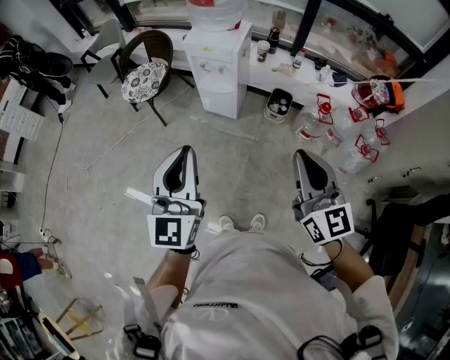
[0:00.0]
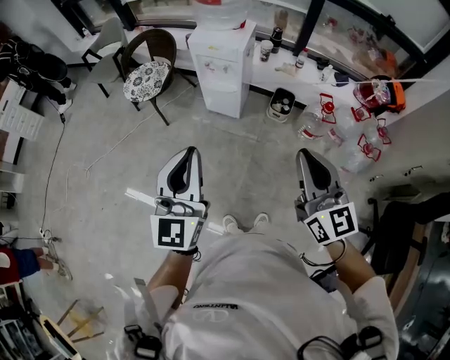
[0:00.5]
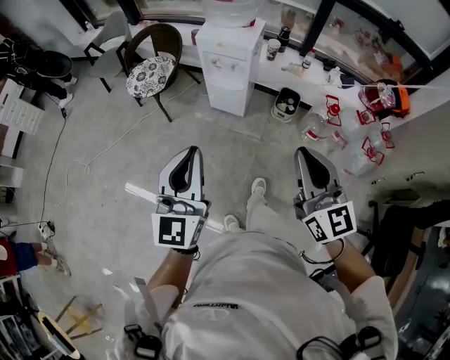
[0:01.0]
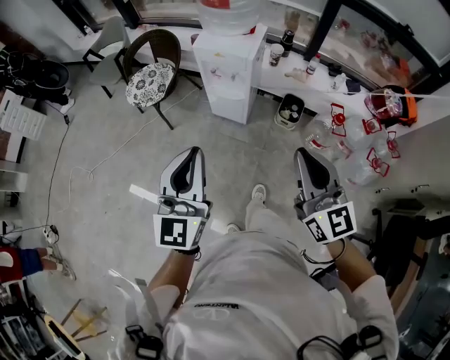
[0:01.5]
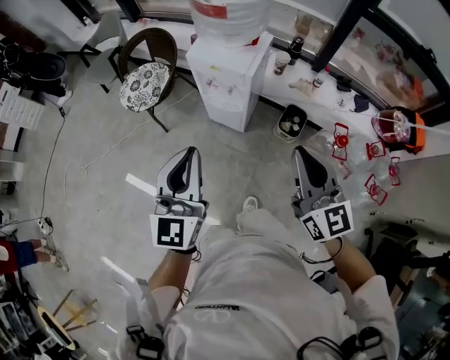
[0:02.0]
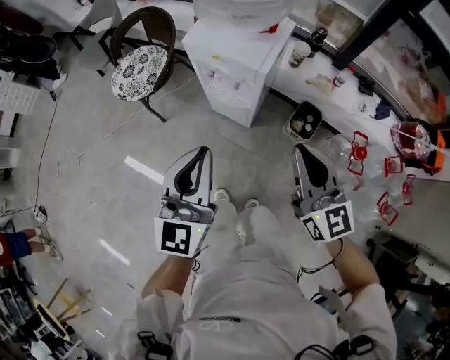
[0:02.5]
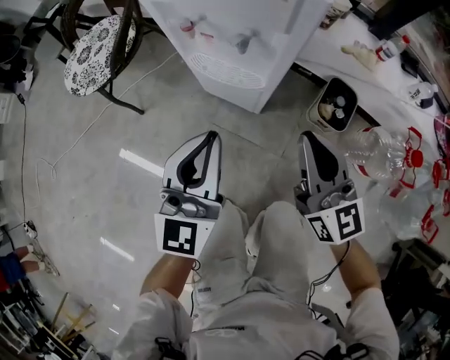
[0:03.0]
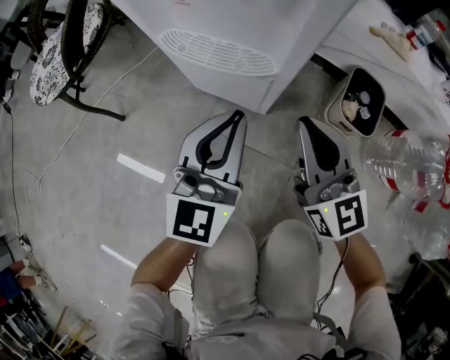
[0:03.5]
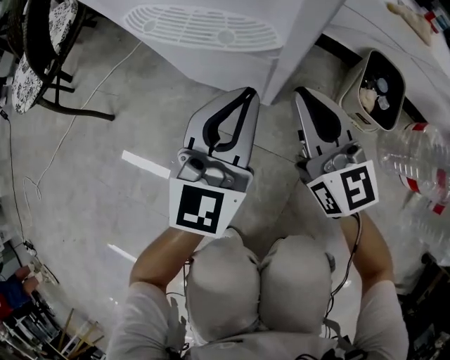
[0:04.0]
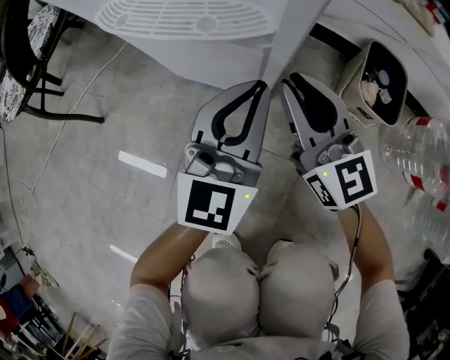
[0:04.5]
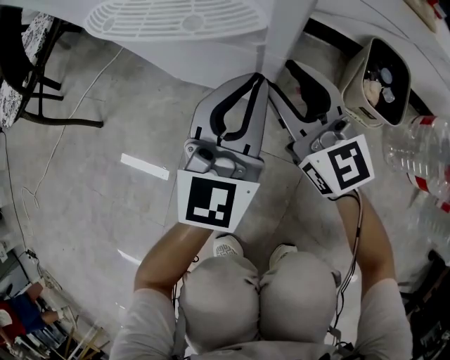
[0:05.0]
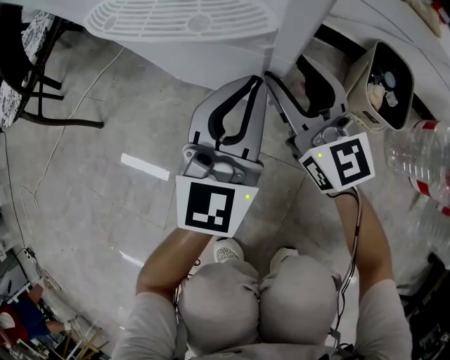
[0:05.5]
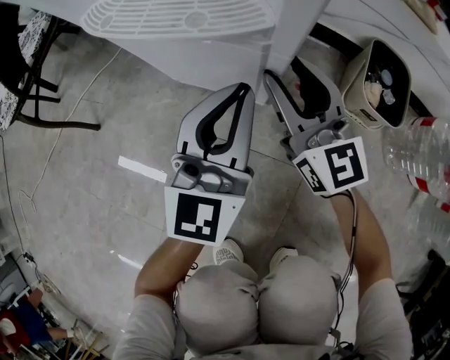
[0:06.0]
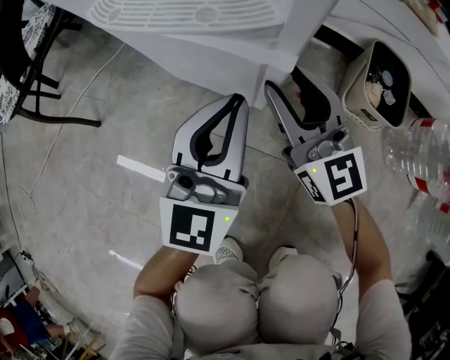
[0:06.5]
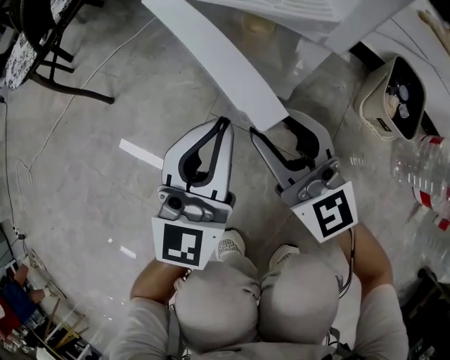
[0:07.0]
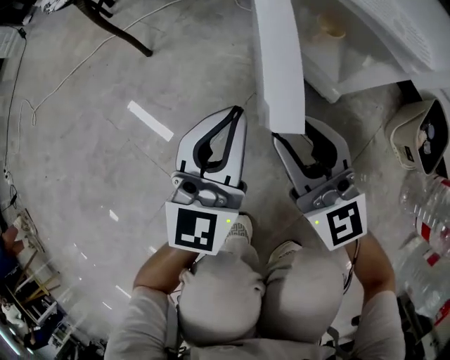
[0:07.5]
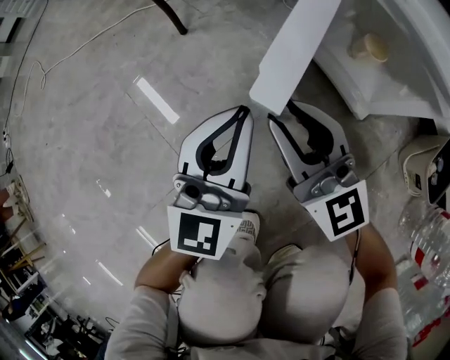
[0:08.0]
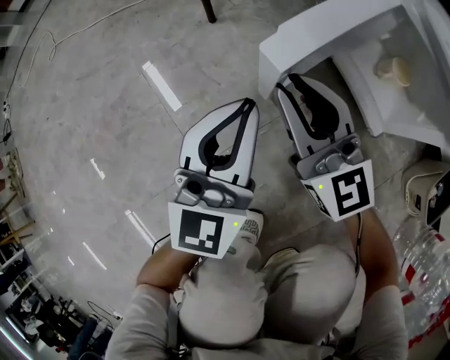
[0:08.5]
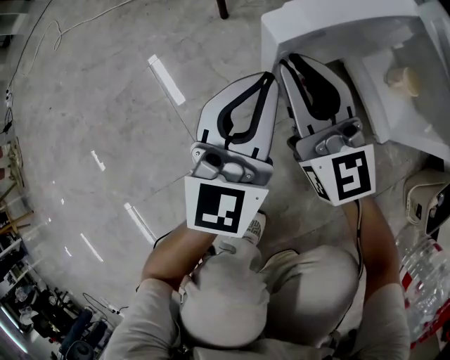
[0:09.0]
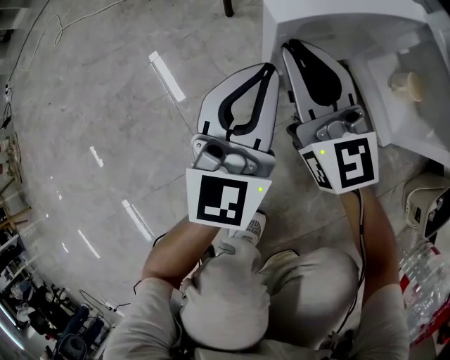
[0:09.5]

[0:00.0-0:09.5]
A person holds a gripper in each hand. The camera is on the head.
0:00.0 to 0:02.0: The grippers both shift forward by approximately 25 cm.
0:02.0 to 0:04.0: The two grippers go approximately 80 cm downward and forward.
0:04.0 to 0:05.5: The right gripper moves downward, approximately 5 cm, and opens its fingers; the left gripper shifts by roughly 5 cm.
0:05.5 to 0:07.5: Both grippers travel together to the left and backward, roughly 25 cm. The left gripper rotates about 20 degrees. The right gripper rotates approximately 20 degrees.
0:07.5 to 0:09.5: The two grippers go approximately 20 cm to the left and forward. The right gripper closes up.

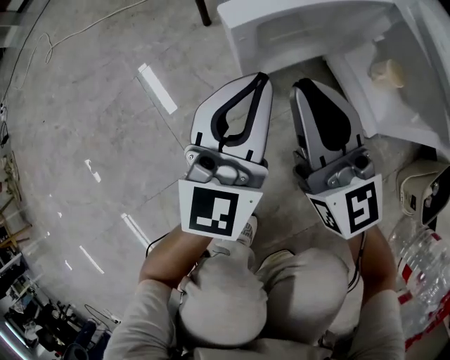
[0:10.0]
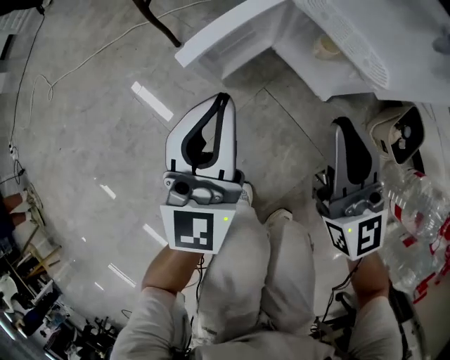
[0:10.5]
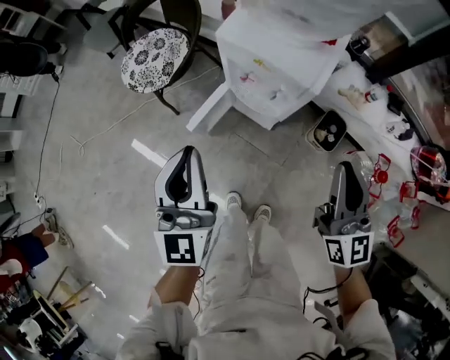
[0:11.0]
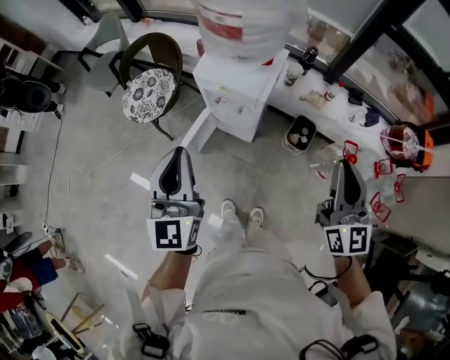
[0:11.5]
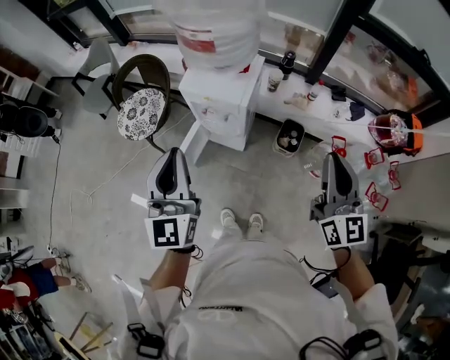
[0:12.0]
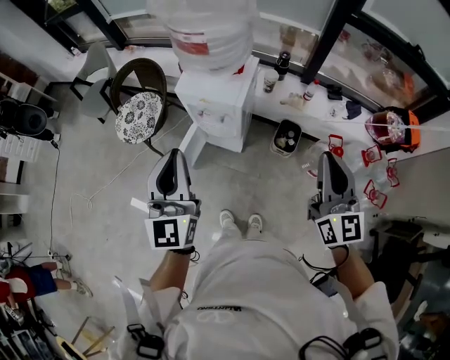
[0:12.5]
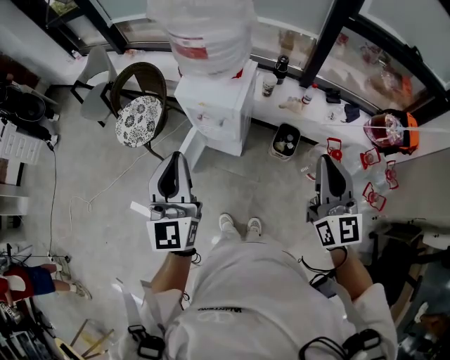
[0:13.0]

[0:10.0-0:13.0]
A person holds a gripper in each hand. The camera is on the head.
0:10.0 to 0:11.5: Both grippers travel together upward, roughly 70 cm. The right gripper changes its angle by approximately 50 degrees.
0:11.5 to 0:13.0: The left gripper shifts roughly 5 cm to the right. Meanwhile the right gripper ends up approximately 5 cm from where it was.

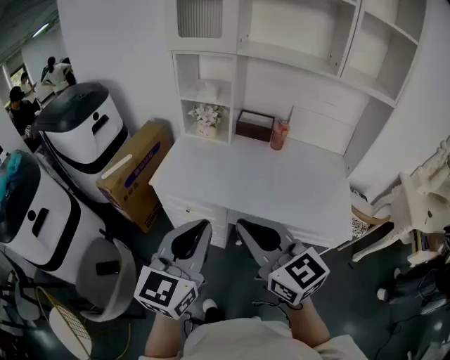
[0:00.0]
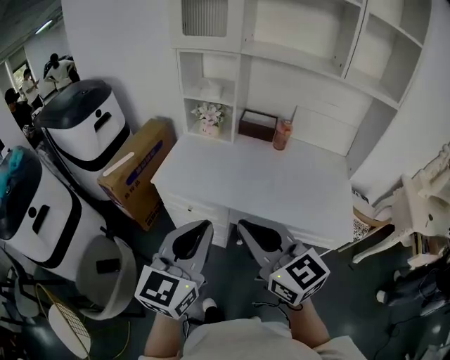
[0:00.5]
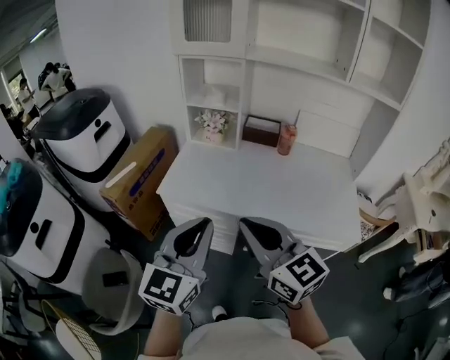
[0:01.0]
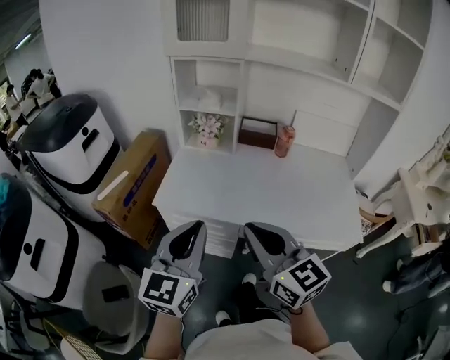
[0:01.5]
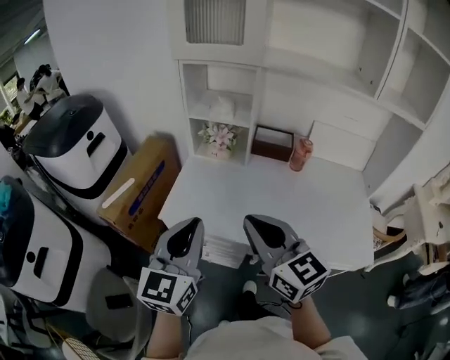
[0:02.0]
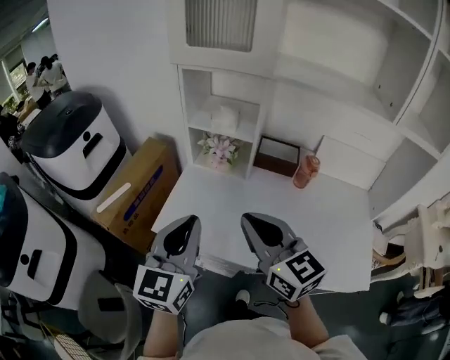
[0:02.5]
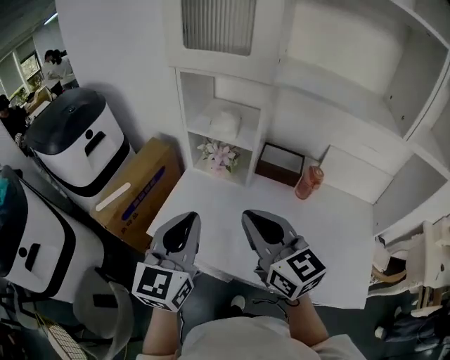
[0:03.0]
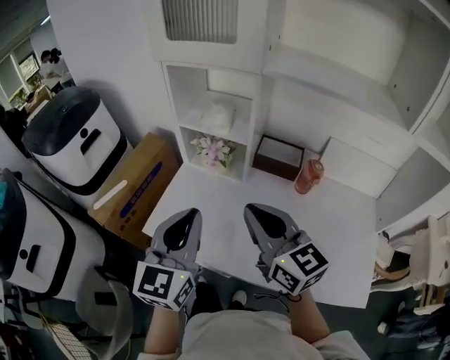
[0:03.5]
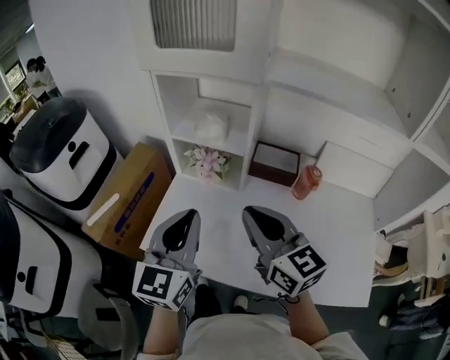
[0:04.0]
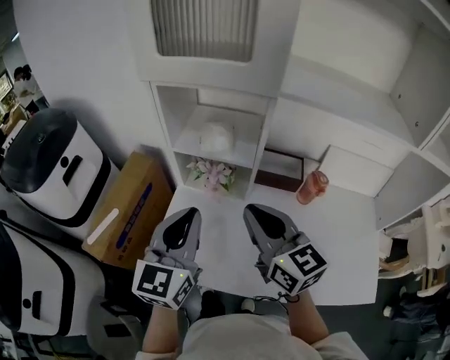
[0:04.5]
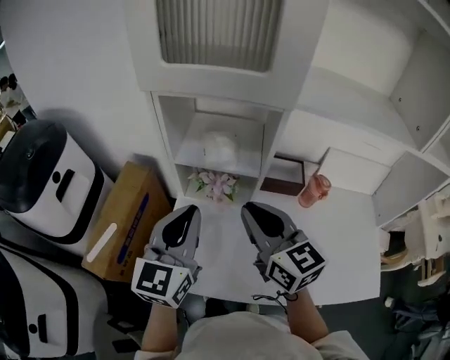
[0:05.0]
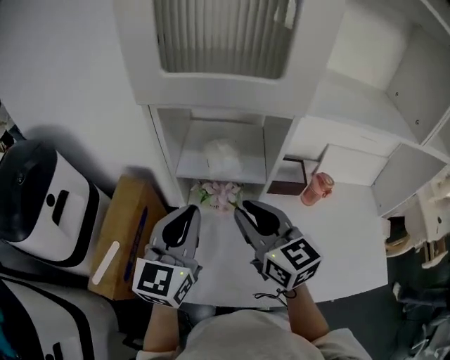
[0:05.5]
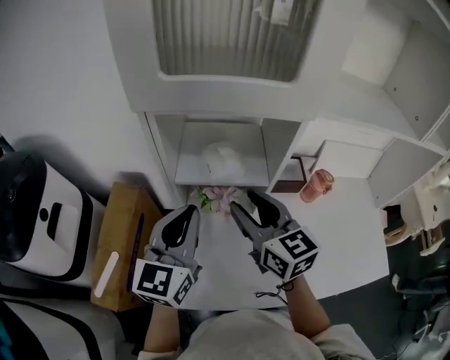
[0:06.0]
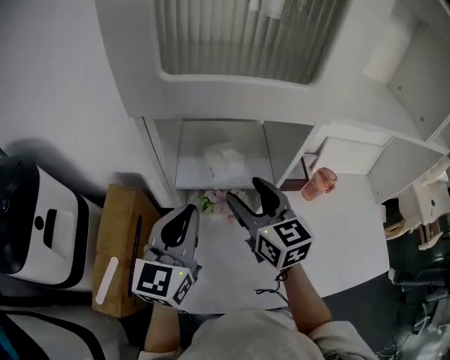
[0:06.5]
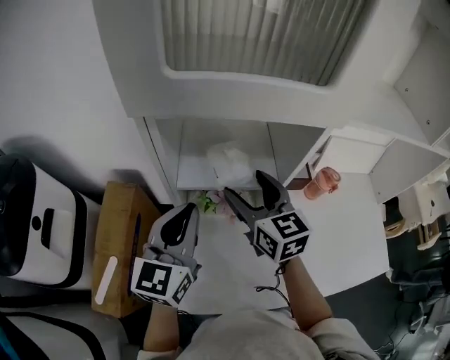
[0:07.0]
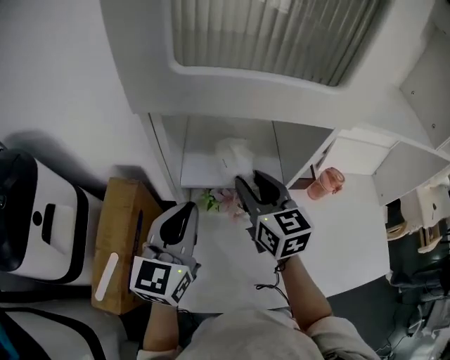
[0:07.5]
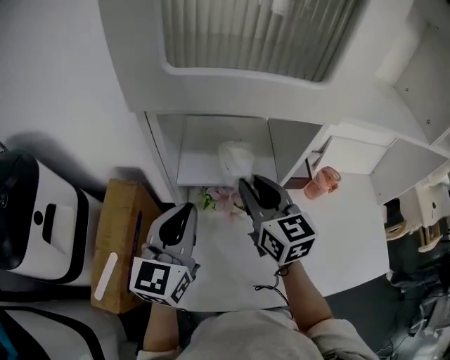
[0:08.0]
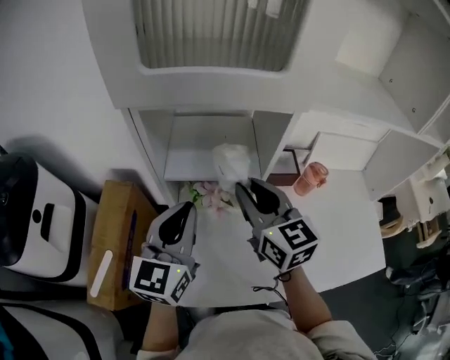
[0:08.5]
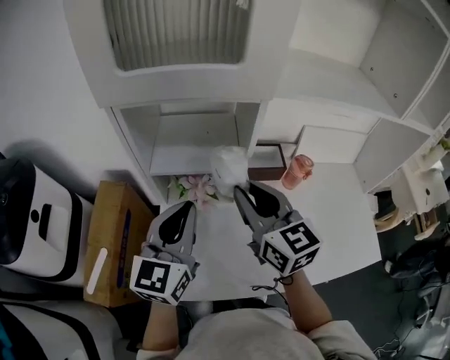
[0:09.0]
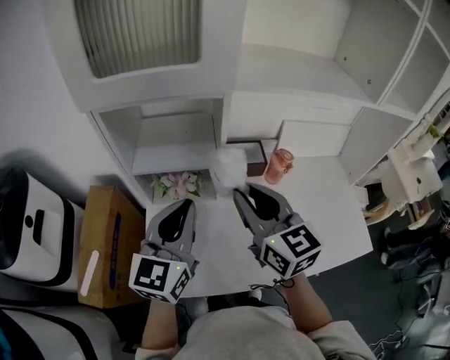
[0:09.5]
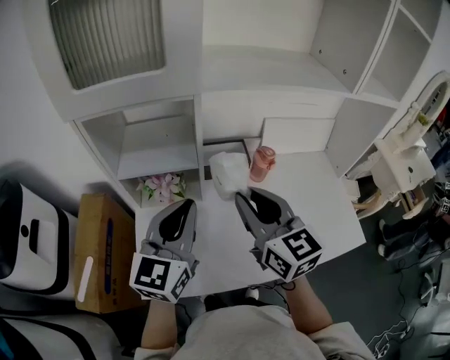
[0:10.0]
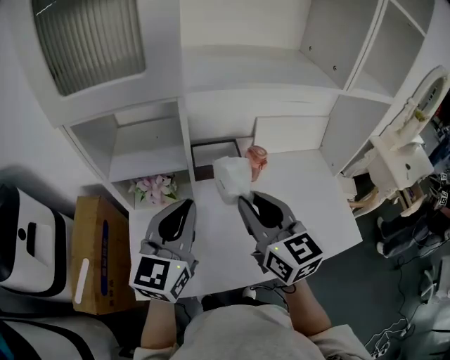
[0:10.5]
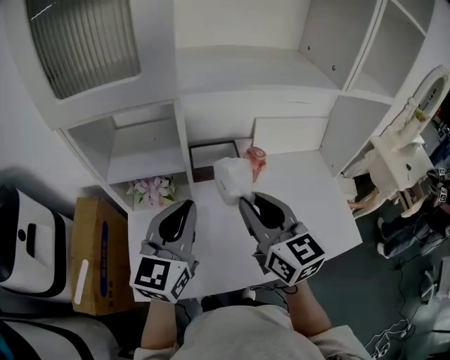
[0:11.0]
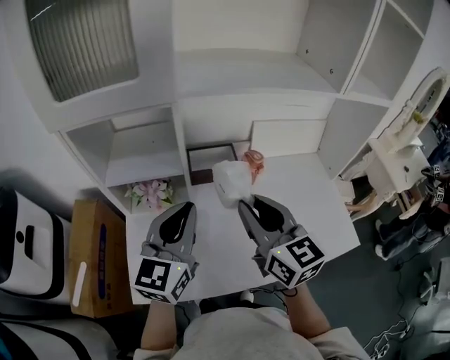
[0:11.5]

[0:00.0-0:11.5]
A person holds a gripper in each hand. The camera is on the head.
0:00.0 to 0:02.0: The right gripper goes about 20 cm forward; the left gripper moves forward and to the left, some 20 cm.
0:02.0 to 0:04.0: The two grippers go some 20 cm forward and to the right.
0:04.0 to 0:06.0: Both grippers move forward and to the left, some 20 cm. The right gripper opens up.
0:06.0 to 0:07.5: The left gripper moves approximately 5 cm. Meanwhile the right gripper heads forward, covering about 10 cm, and opens, then closes once more.
0:07.5 to 0:09.5: The left gripper heads to the right and backward, covering roughly 15 cm; the right gripper shifts some 20 cm backward, to the right and upward.
0:09.5 to 0:11.5: The two grippers go some 10 cm to the right.

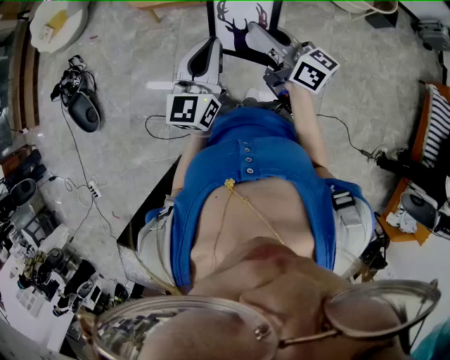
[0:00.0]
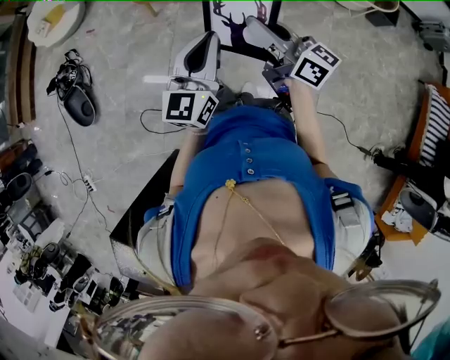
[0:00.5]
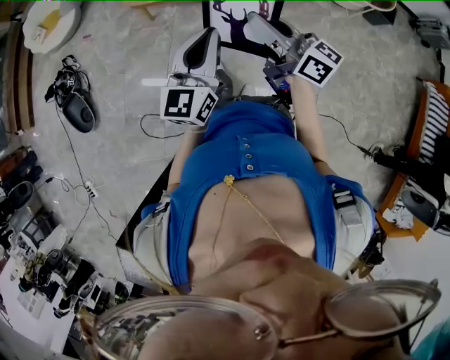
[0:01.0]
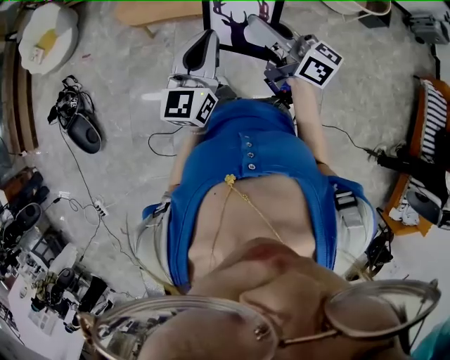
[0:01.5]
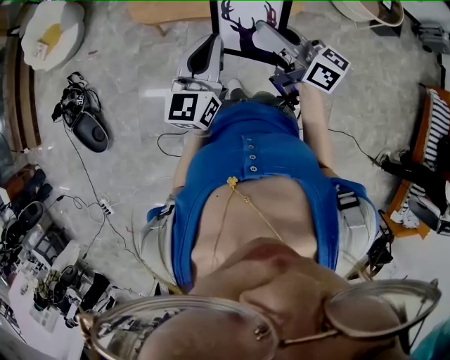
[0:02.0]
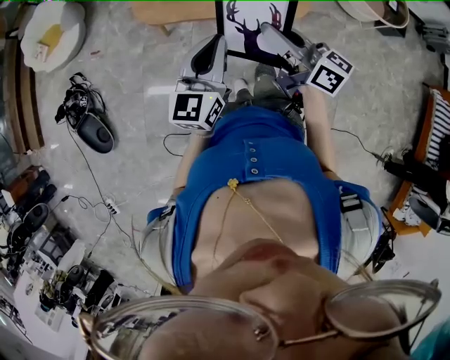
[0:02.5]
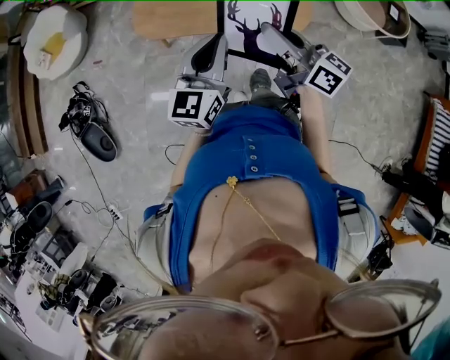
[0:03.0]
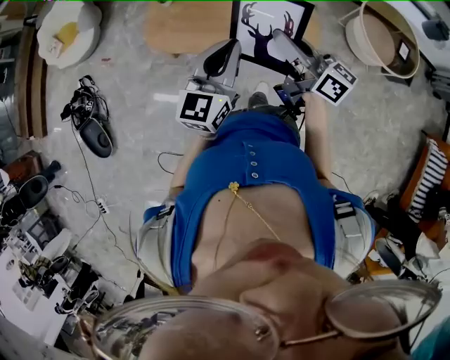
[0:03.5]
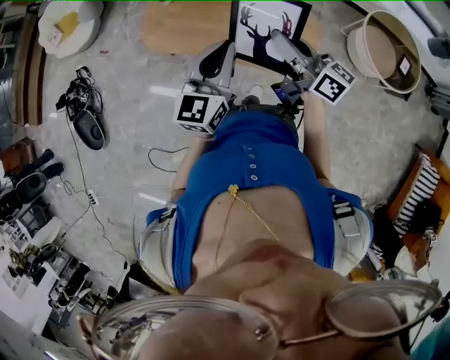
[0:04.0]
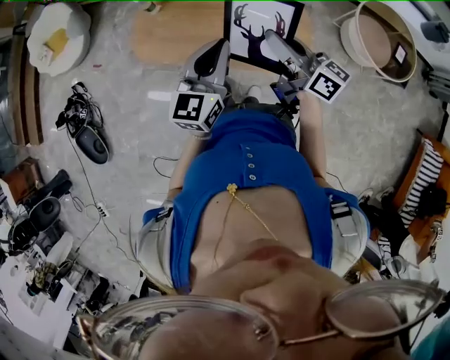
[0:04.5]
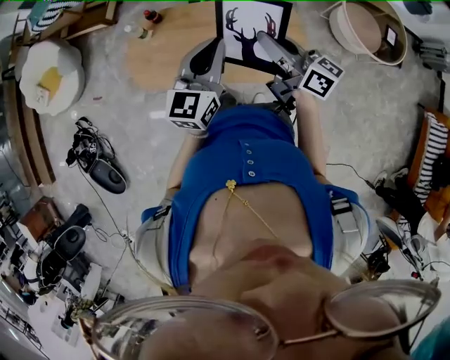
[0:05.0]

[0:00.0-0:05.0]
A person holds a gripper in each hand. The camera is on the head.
0:00.0 to 0:02.5: The grippers move only a little.
0:02.5 to 0:05.0: The left gripper heads forward, covering some 5 cm. Meanwhile the right gripper changes place by approximately 5 cm.
